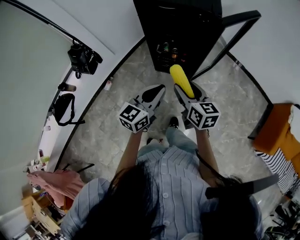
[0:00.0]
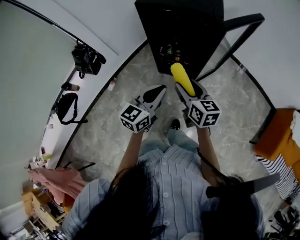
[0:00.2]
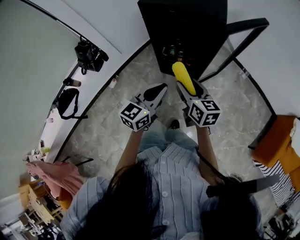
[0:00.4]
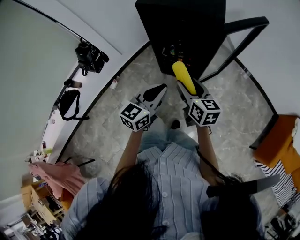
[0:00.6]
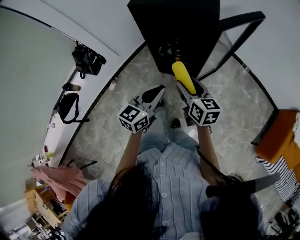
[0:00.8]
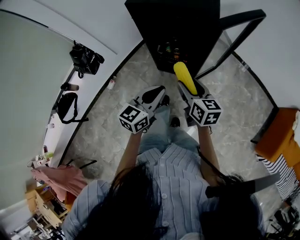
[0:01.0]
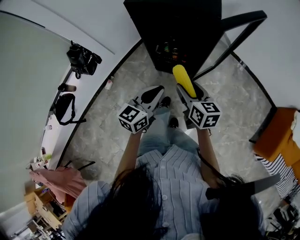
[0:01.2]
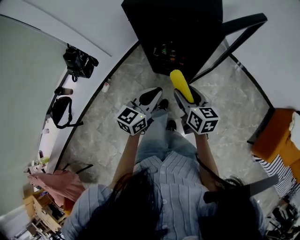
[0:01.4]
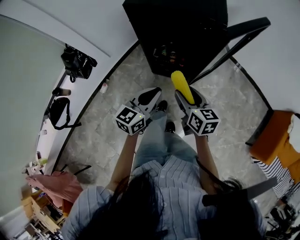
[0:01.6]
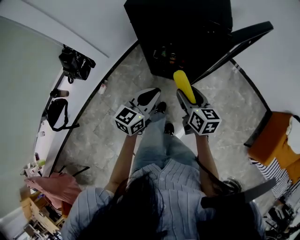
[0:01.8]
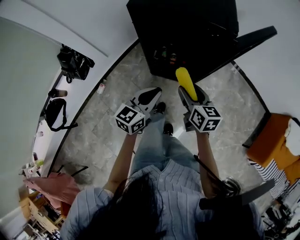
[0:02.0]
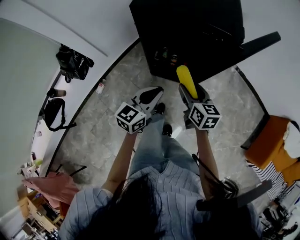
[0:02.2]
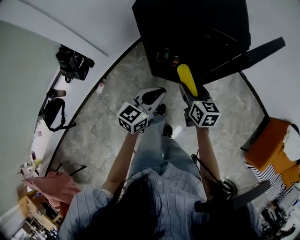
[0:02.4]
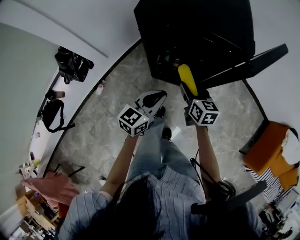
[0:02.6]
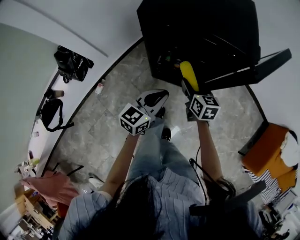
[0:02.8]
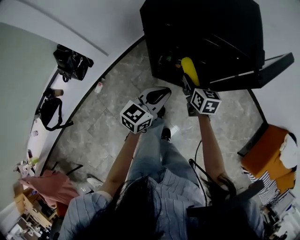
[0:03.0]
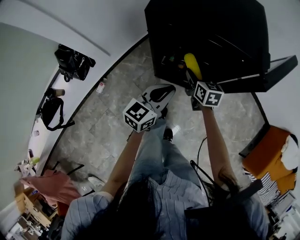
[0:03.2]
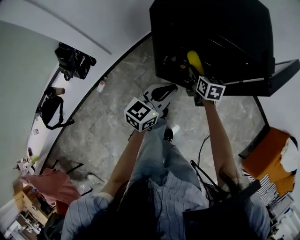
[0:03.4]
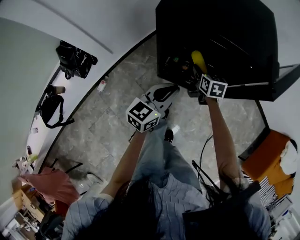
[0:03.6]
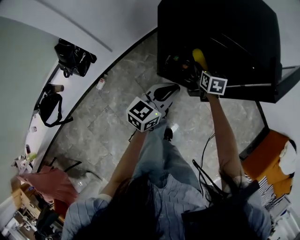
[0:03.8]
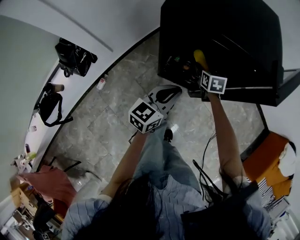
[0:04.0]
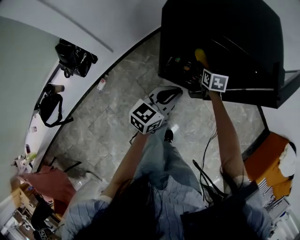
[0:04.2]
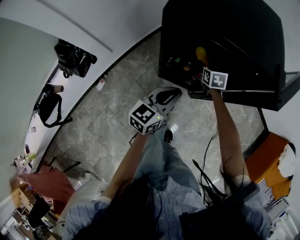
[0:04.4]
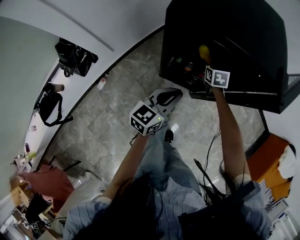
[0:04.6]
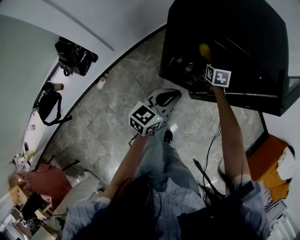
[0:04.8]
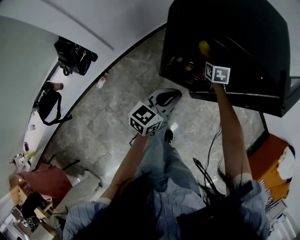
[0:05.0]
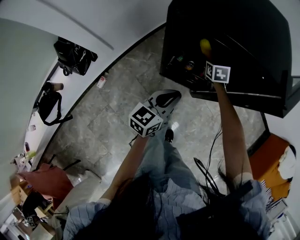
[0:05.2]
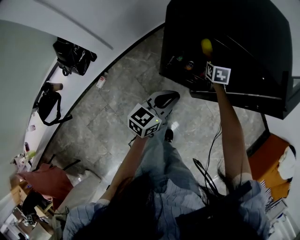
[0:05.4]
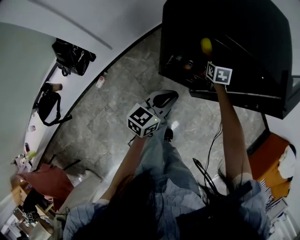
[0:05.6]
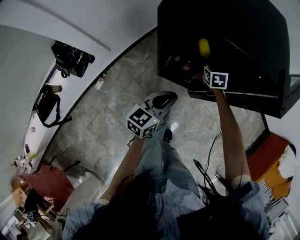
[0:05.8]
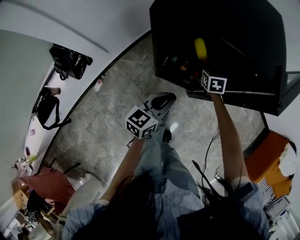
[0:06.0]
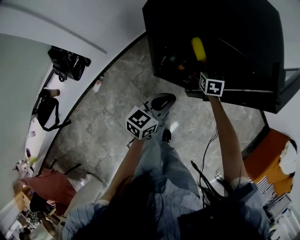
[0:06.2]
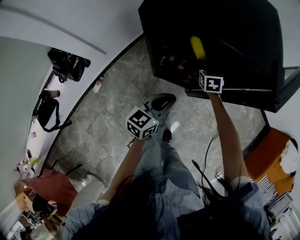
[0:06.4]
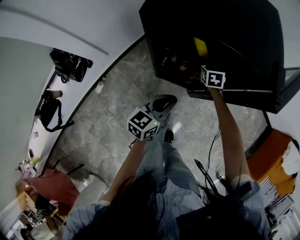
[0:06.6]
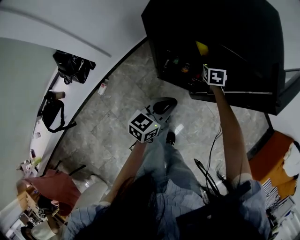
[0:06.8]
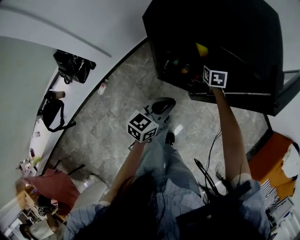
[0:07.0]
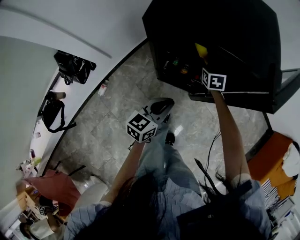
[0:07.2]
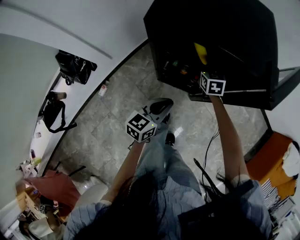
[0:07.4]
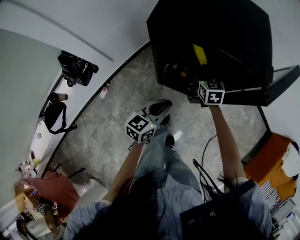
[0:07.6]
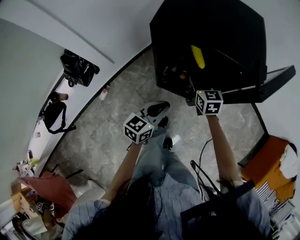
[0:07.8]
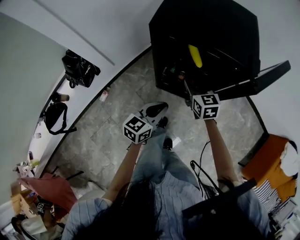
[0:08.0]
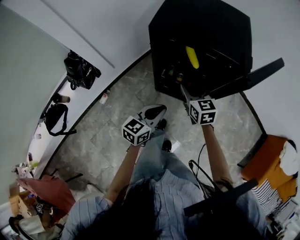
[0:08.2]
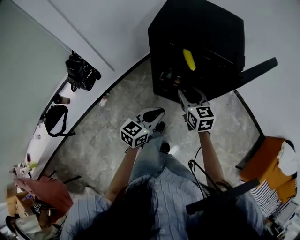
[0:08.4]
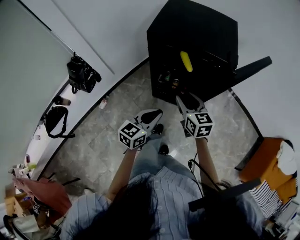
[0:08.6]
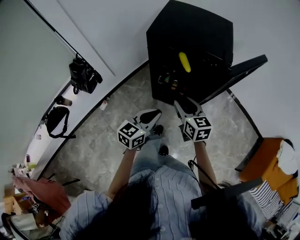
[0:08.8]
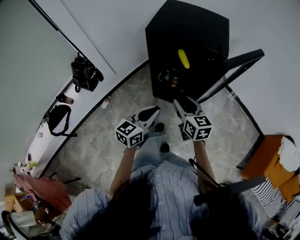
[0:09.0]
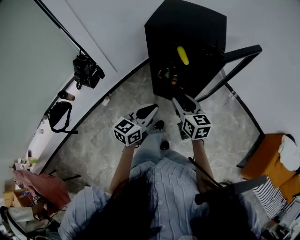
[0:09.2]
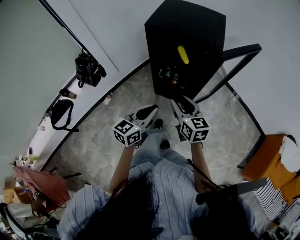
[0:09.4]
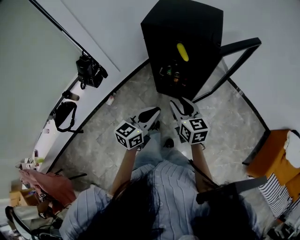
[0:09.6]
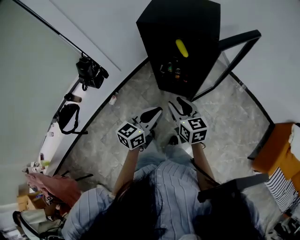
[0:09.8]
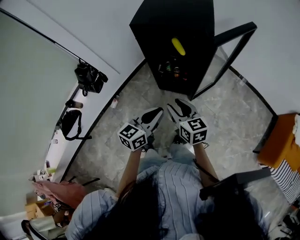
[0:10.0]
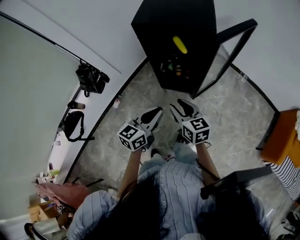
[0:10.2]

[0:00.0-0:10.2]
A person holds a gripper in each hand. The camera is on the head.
0:00.0 to 0:01.4: The grippers both shift forward by roughly 5 cm.
0:01.4 to 0:03.0: The right gripper heads forward and downward, covering about 25 cm. Meanwhile the left gripper heads forward, downward and to the left, covering some 15 cm.
0:03.0 to 0:04.4: The right gripper moves forward and downward, about 15 cm.
0:04.4 to 0:07.2: There are only small adjustments of the grippers.
0:07.2 to 0:08.8: The right gripper is displaced backward and upward by roughly 35 cm, and changes its angle by about 30 degrees. The left gripper moves backward and upward, about 20 cm.
0:08.8 to 0:10.2: Both grippers travel together backward, about 10 cm.

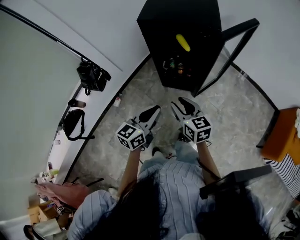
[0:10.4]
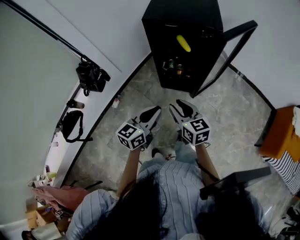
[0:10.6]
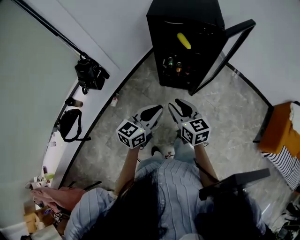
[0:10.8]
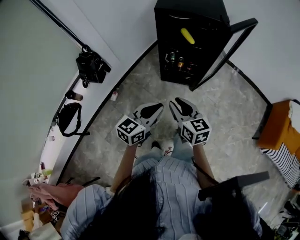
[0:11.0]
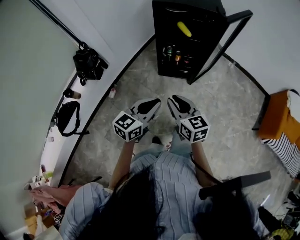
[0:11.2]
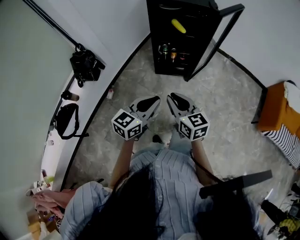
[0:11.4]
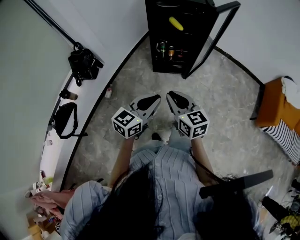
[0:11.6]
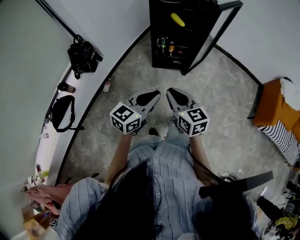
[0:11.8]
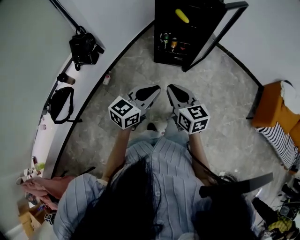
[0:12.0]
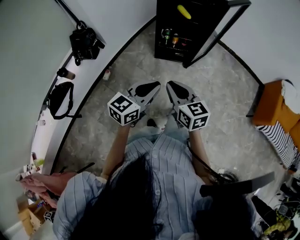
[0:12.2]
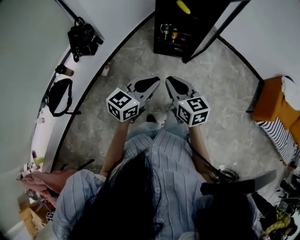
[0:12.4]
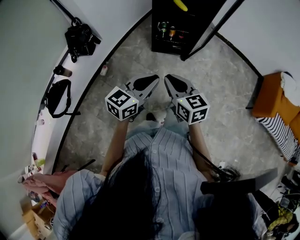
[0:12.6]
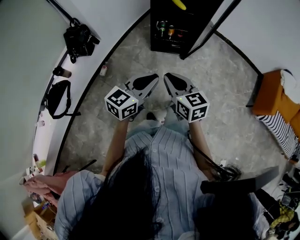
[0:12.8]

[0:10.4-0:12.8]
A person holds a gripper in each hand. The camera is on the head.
0:10.4 to 0:11.6: Both grippers move backward and to the left, about 20 cm. The right gripper closes.
0:11.6 to 0:12.8: The grippers make only small movements.

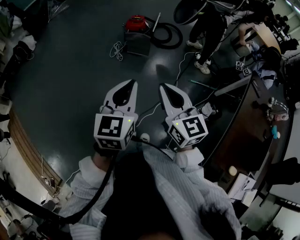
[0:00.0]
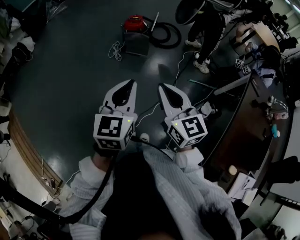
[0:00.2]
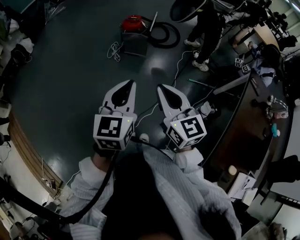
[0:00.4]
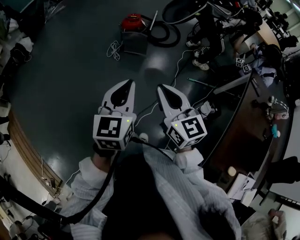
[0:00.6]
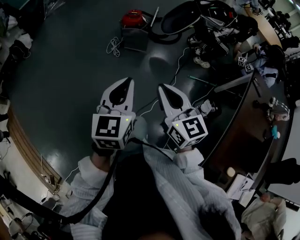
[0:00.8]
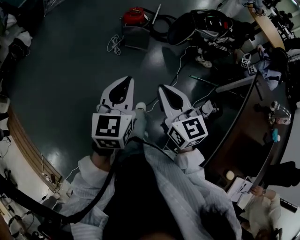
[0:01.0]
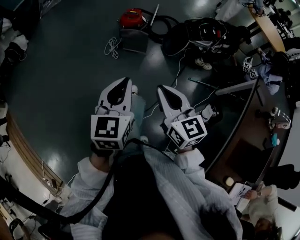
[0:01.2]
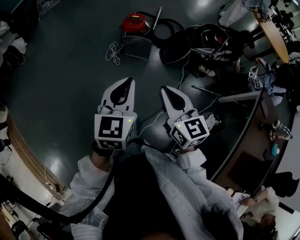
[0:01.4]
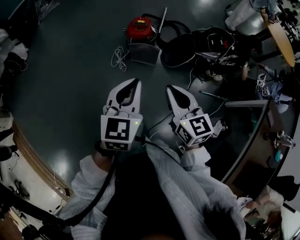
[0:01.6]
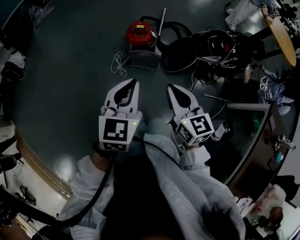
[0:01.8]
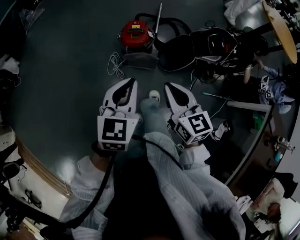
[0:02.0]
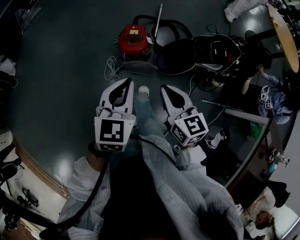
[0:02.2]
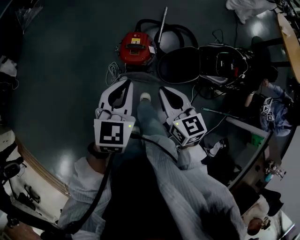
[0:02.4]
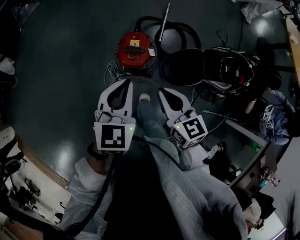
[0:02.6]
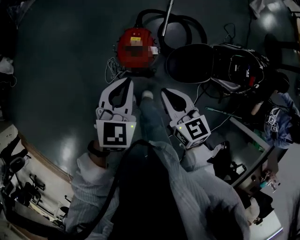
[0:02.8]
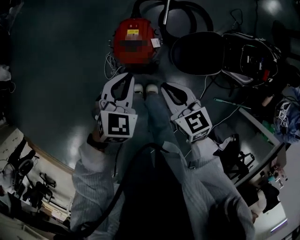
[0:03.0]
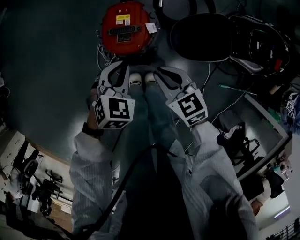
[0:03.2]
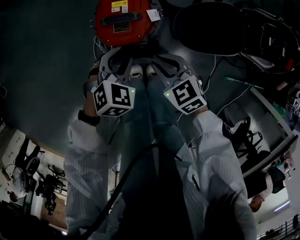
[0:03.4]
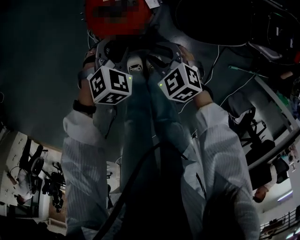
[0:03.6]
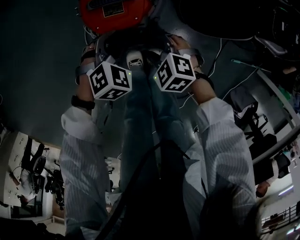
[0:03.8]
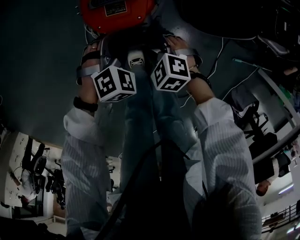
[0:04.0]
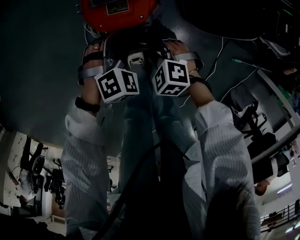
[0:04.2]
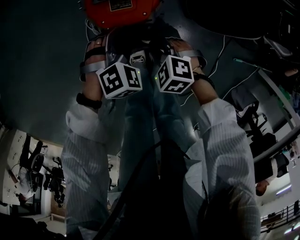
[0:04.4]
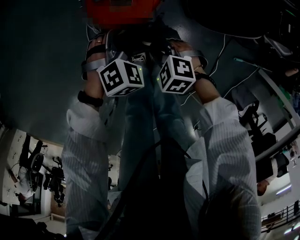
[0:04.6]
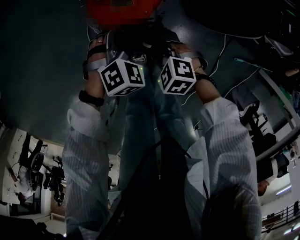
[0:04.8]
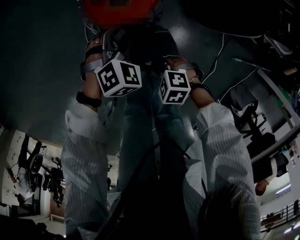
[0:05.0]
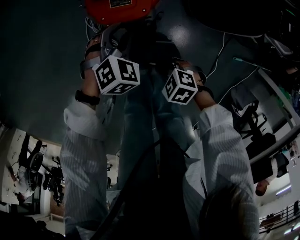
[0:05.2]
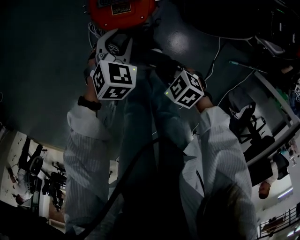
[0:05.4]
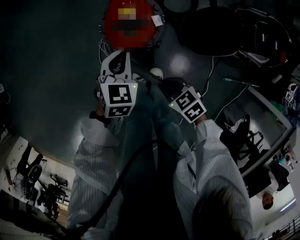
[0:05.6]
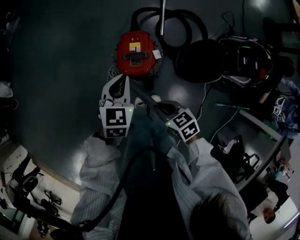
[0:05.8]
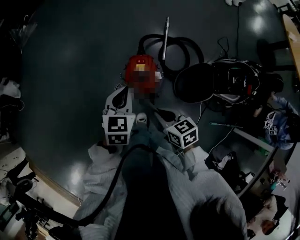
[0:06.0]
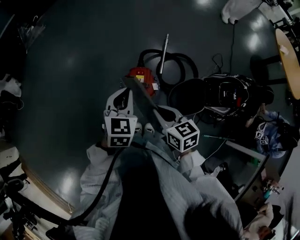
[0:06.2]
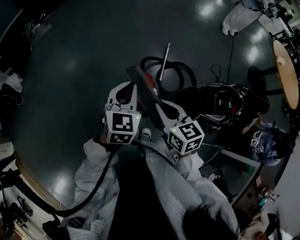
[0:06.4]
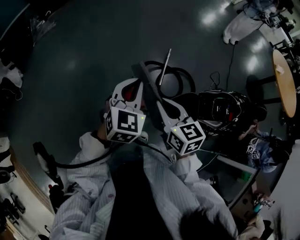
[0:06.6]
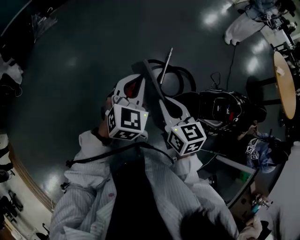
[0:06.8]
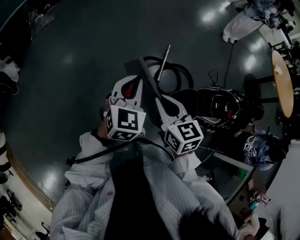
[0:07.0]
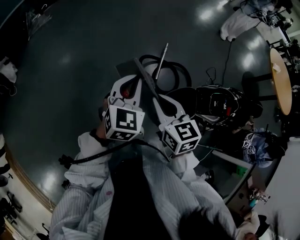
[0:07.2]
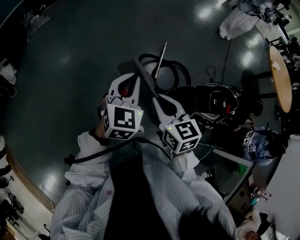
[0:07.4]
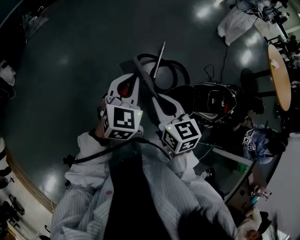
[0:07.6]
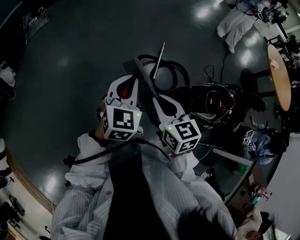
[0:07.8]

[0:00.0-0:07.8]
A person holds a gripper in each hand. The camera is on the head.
0:00.0 to 0:01.6: The two grippers go about 40 cm forward.
0:01.6 to 0:03.2: The pair of grippers is taken forward, some 60 cm. The two grippers go roughly 40 cm downward. The right gripper rotates about 30 degrees. The left gripper angles its fingers downward, by about 30 degrees.
0:03.2 to 0:04.6: Both grippers travel together downward, about 25 cm. The right gripper rotates approximately 40 degrees, and opens, then closes once more. The left gripper changes its angle by roughly 20 degrees, and opens its fingers.
0:04.6 to 0:06.2: Both grippers move upward, about 50 cm. The right gripper angles its fingers upward, by some 30 degrees, while the left gripper rotates approximately 50 degrees, and closes.
0:06.2 to 0:07.8: Both grippers travel together upward, about 10 cm.

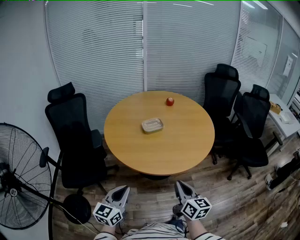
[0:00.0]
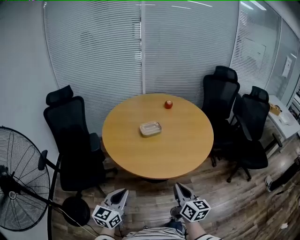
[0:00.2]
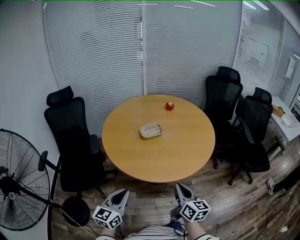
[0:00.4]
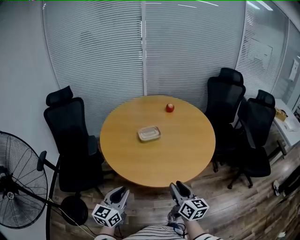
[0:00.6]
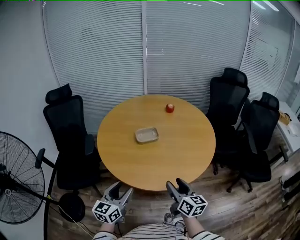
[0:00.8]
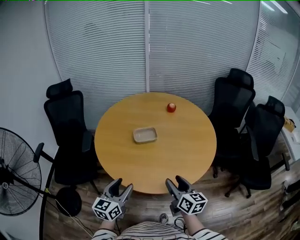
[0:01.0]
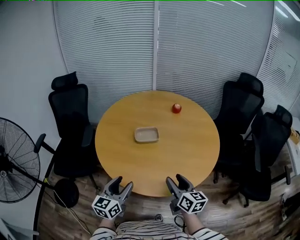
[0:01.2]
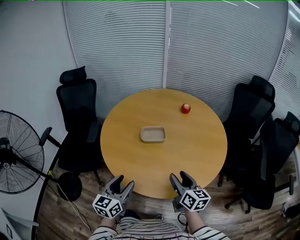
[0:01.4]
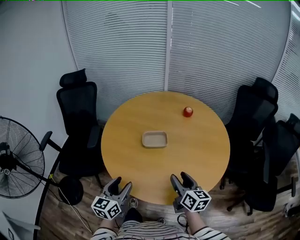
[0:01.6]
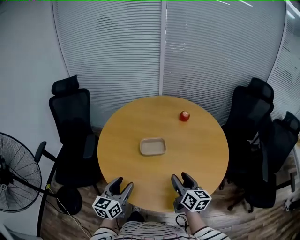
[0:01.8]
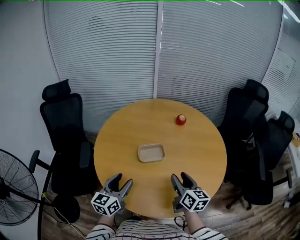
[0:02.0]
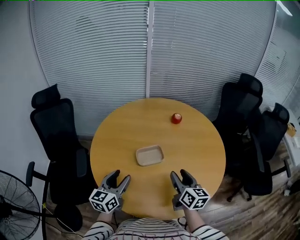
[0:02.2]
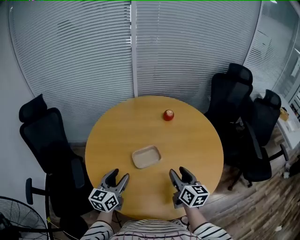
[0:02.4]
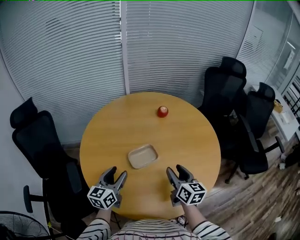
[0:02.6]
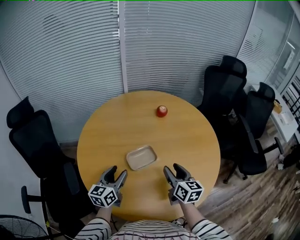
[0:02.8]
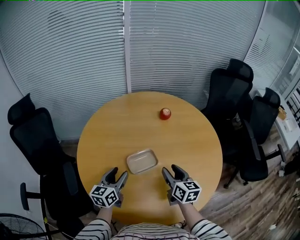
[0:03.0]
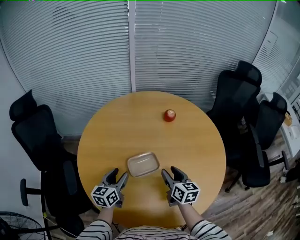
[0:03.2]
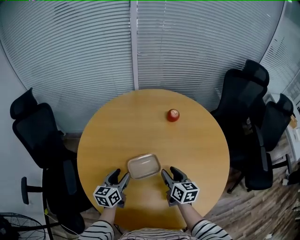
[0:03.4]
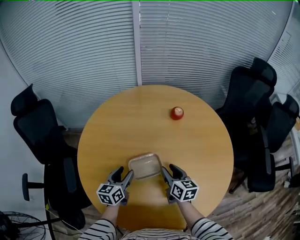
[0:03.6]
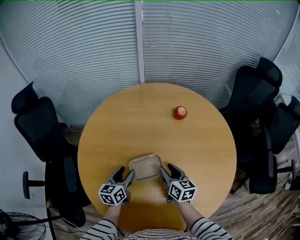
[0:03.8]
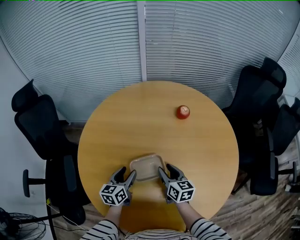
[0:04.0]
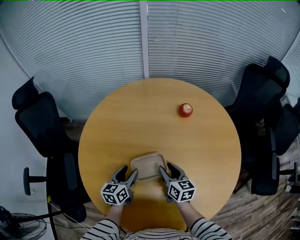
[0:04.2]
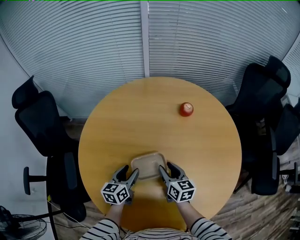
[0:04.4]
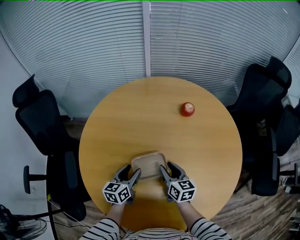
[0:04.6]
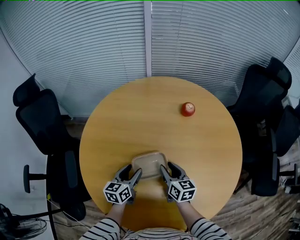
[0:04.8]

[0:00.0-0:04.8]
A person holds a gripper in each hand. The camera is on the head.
0:00.0 to 0:01.6: The left gripper moves forward and to the right, about 25 cm, turns by approximately 20 degrees, and opens its fingers, while the right gripper is displaced forward by about 30 cm, and opens up.
0:01.6 to 0:03.2: The right gripper ends up roughly 25 cm from where it was. The left gripper changes place by some 35 cm, and swivels about 20 degrees.
0:03.2 to 0:04.8: The left gripper shifts about 10 cm downward, while the right gripper shifts approximately 10 cm downward and forward.
